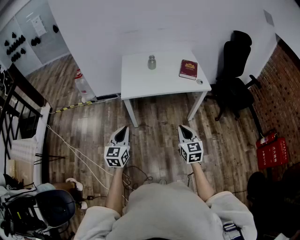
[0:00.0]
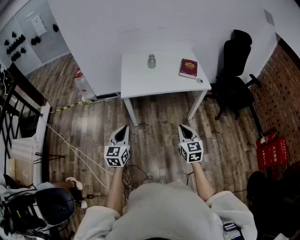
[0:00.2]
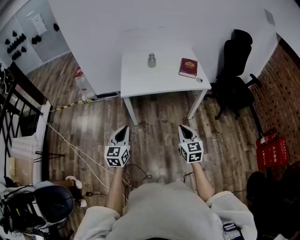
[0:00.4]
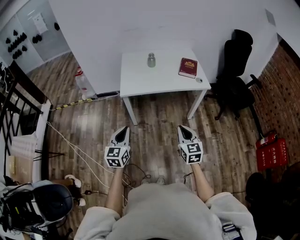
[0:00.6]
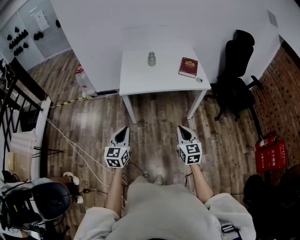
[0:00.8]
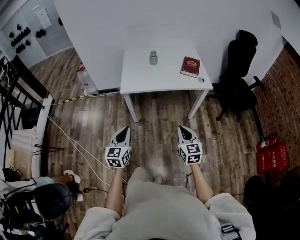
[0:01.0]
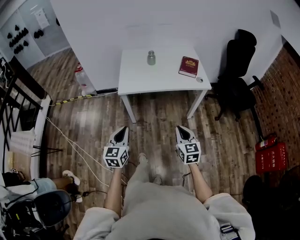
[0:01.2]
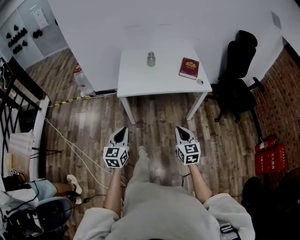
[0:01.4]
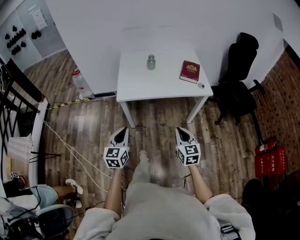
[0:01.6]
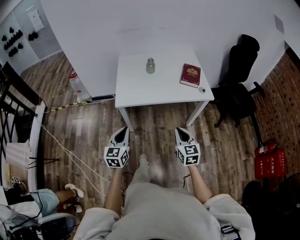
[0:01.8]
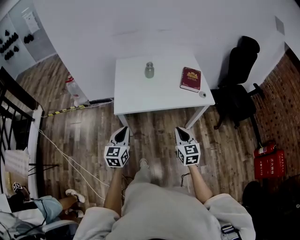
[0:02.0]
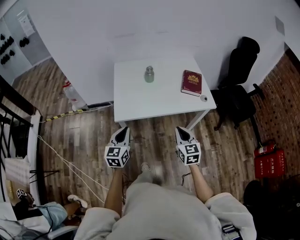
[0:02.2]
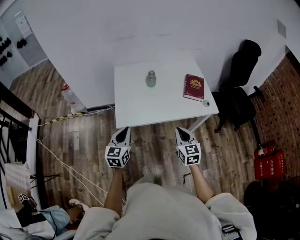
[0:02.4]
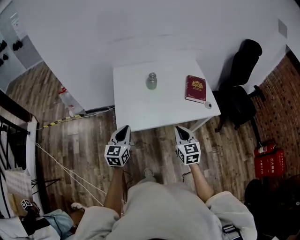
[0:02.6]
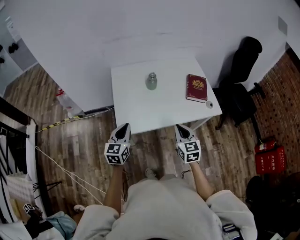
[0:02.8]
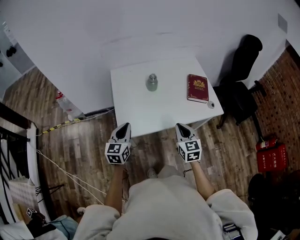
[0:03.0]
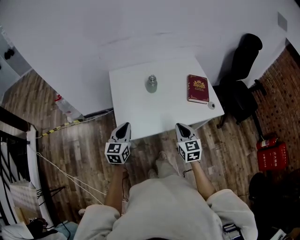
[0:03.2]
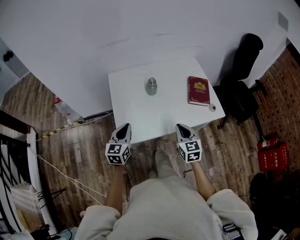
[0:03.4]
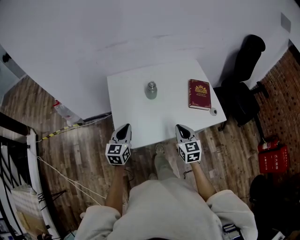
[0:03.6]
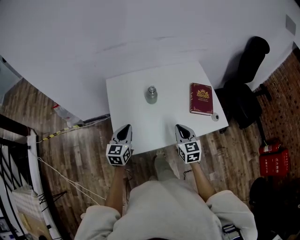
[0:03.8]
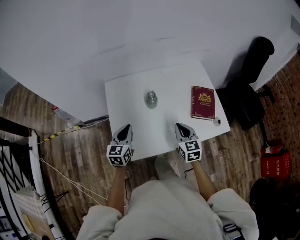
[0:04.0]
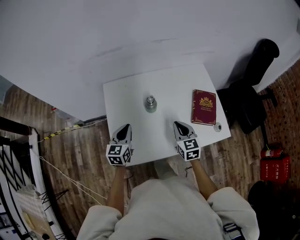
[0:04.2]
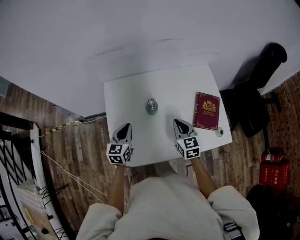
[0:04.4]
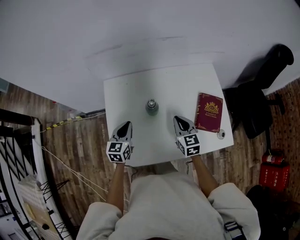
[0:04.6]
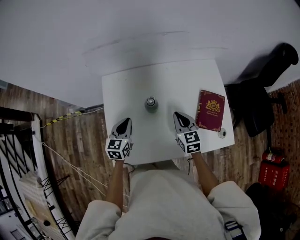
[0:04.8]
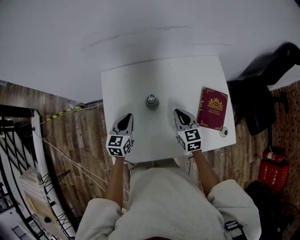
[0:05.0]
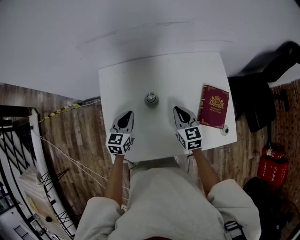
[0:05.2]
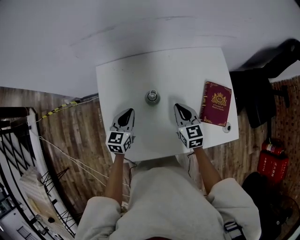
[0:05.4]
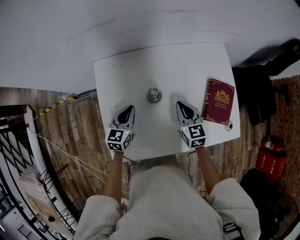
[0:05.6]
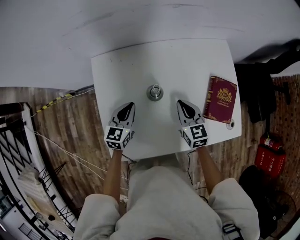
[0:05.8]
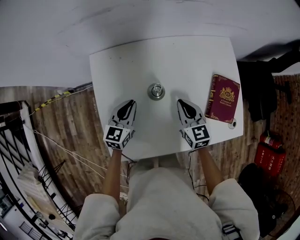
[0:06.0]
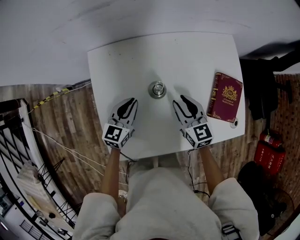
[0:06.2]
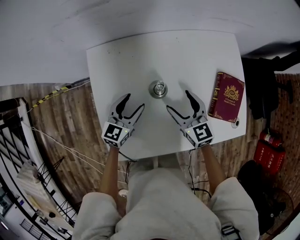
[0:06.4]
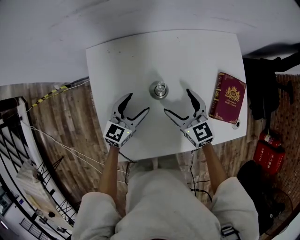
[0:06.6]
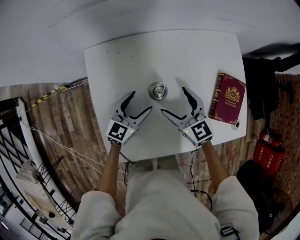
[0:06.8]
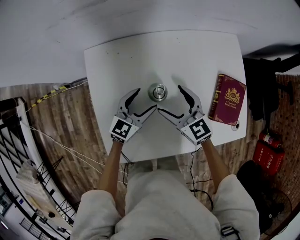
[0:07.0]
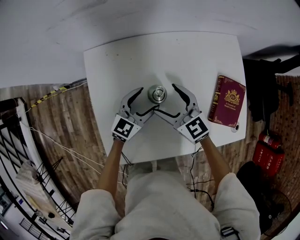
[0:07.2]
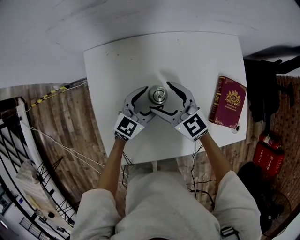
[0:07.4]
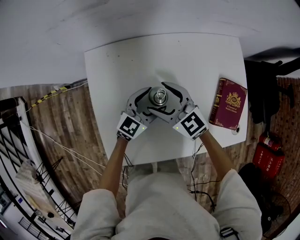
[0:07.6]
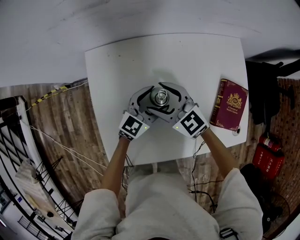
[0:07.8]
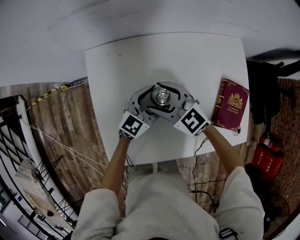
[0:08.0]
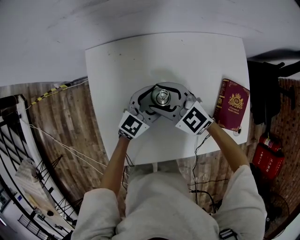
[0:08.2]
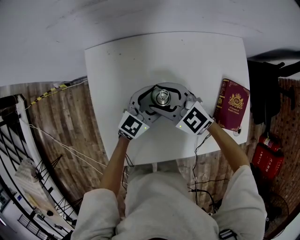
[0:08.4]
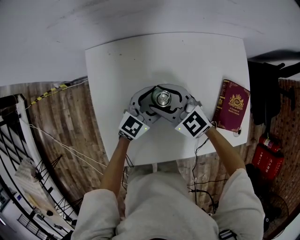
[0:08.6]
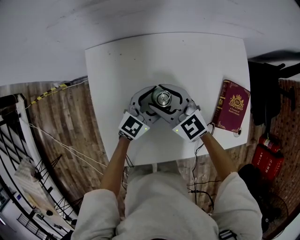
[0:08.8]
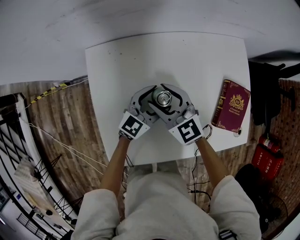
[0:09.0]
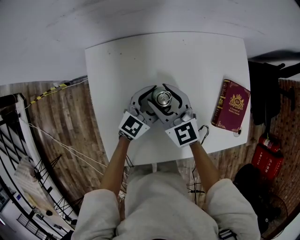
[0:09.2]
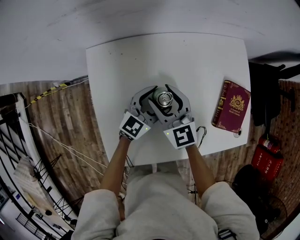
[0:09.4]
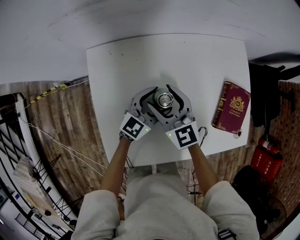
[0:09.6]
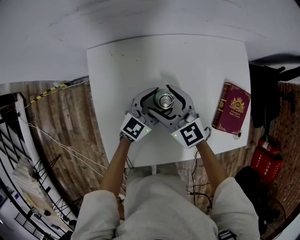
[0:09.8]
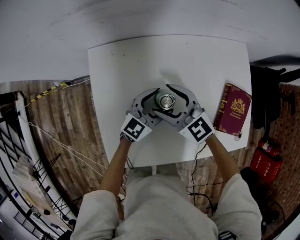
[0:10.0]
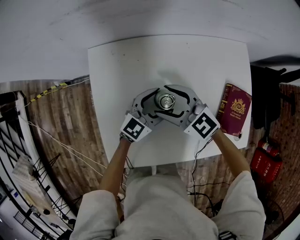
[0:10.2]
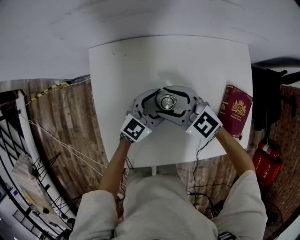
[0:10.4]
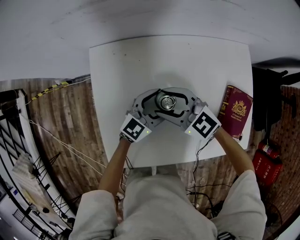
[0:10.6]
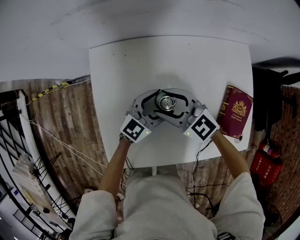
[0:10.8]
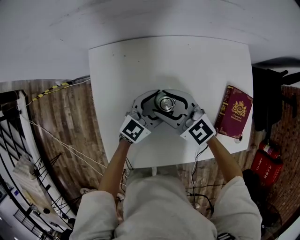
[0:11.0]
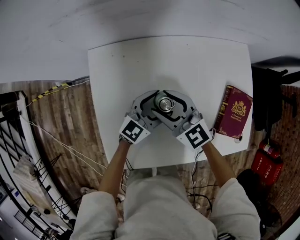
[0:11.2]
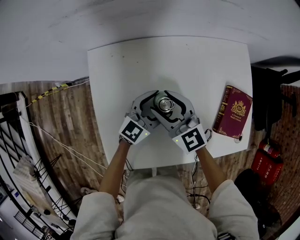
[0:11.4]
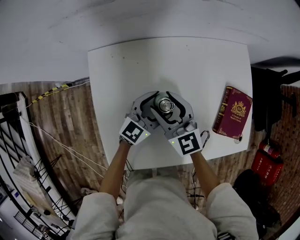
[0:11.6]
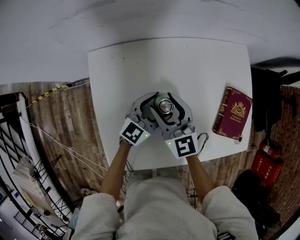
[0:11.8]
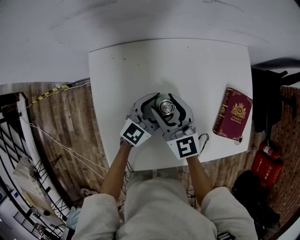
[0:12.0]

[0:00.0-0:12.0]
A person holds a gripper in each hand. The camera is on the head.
0:00.0 to 0:01.6: Both grippers move forward, roughly 5 cm.
0:01.6 to 0:03.0: The two grippers go about 30 cm forward.
0:03.0 to 0:04.4: Both grippers move forward, about 25 cm.
0:04.4 to 0:06.0: The two grippers go about 10 cm downward and forward.
0:06.0 to 0:07.6: The left gripper goes some 10 cm to the right, swivels approximately 20 degrees, and opens up. Meanwhile the right gripper shifts approximately 10 cm to the left, swivels some 30 degrees, and opens up.
0:07.6 to 0:09.0: The grippers move only a little.
0:09.0 to 0:10.4: The right gripper rotates roughly 20 degrees.
0:10.4 to 0:12.0: The right gripper changes its angle by roughly 40 degrees.

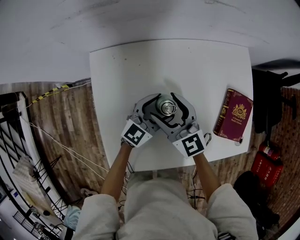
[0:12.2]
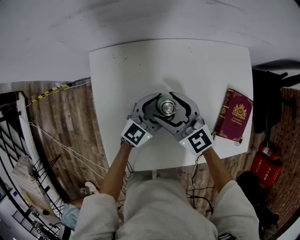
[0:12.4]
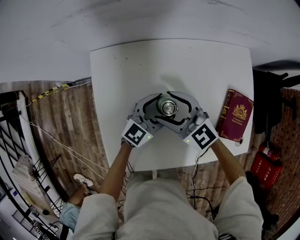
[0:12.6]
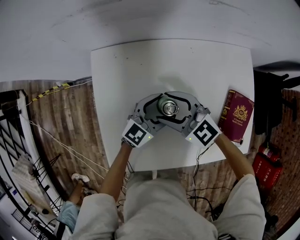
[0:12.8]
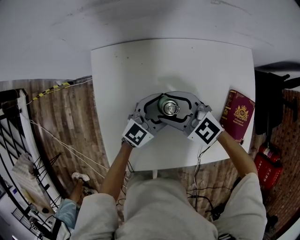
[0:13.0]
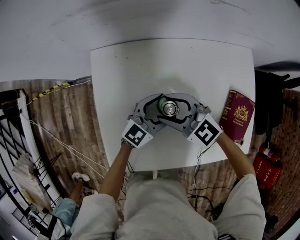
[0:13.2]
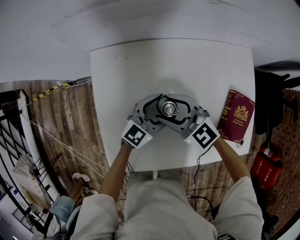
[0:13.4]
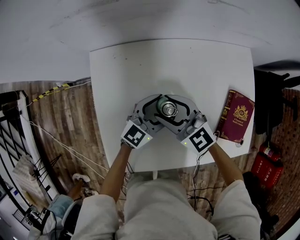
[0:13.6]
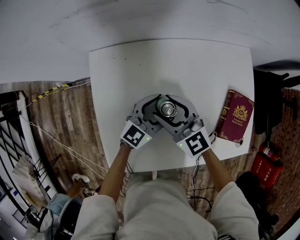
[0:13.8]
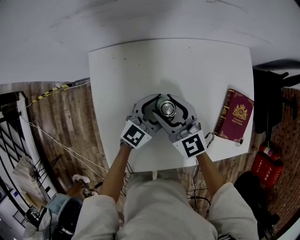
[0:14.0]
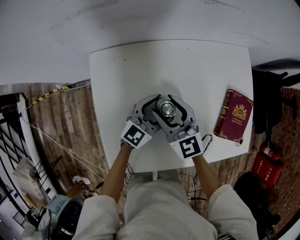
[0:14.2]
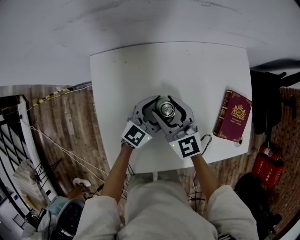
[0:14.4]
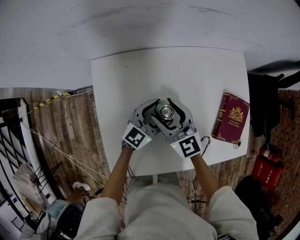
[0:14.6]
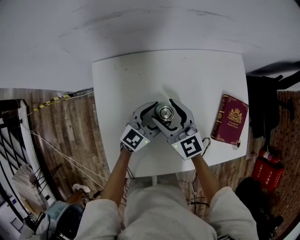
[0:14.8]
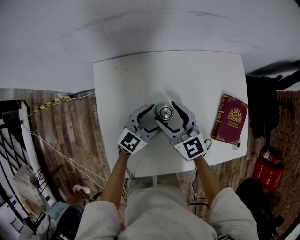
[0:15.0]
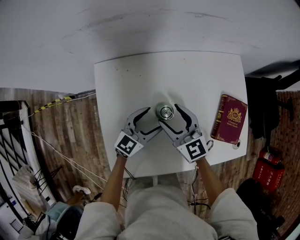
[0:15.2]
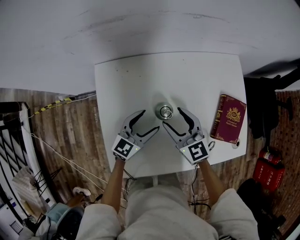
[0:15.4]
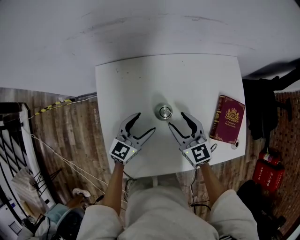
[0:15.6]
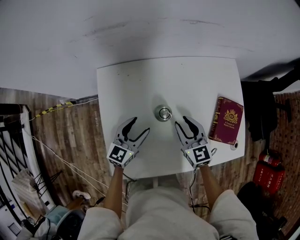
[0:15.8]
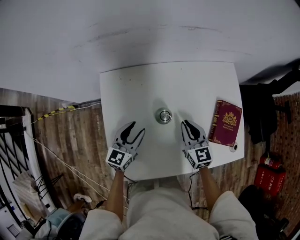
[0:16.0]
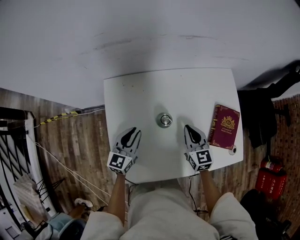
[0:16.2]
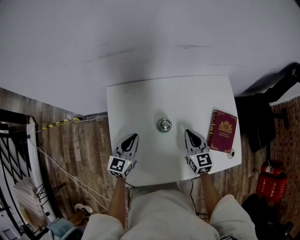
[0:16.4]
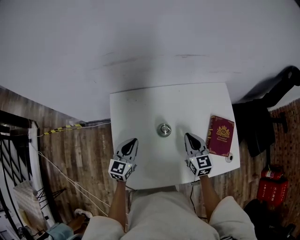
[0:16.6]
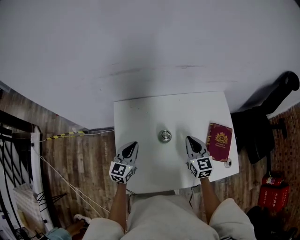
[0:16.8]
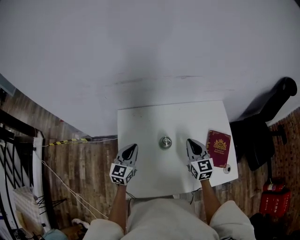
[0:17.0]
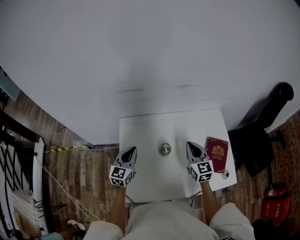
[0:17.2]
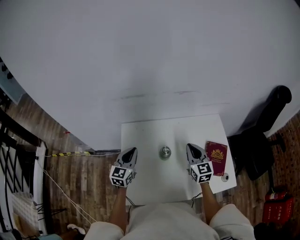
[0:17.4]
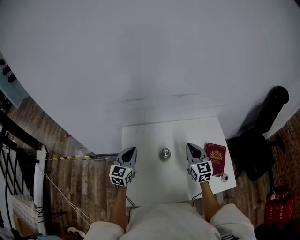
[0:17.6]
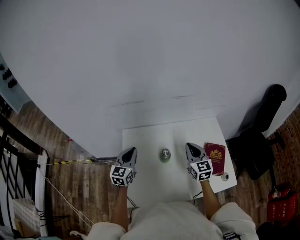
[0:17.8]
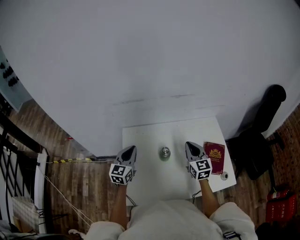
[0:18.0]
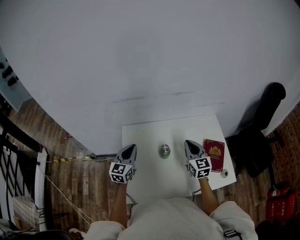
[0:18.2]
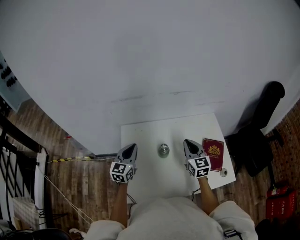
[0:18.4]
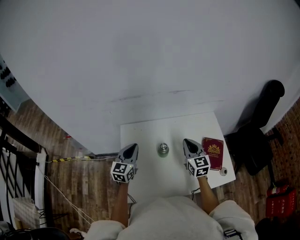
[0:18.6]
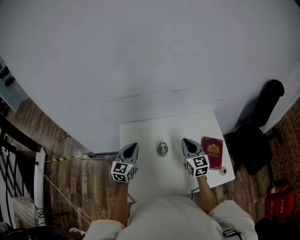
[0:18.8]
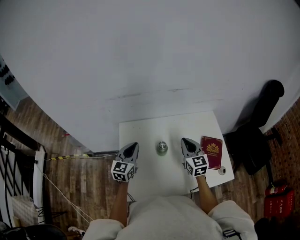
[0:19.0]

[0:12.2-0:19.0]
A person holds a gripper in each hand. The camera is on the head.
0:12.2 to 0:13.6: The right gripper rotates about 20 degrees.
0:13.6 to 0:15.0: The right gripper turns by some 20 degrees.
0:15.0 to 0:16.2: The left gripper heads to the left, covering some 10 cm, rotates approximately 20 degrees, and closes up; the right gripper goes some 10 cm to the right, and closes its fingers.
0:16.2 to 0:17.6: Both grippers move upward, roughly 15 cm.
0:17.6 to 0:19.0: The grippers move only a little.

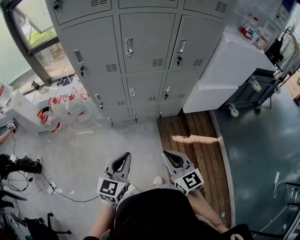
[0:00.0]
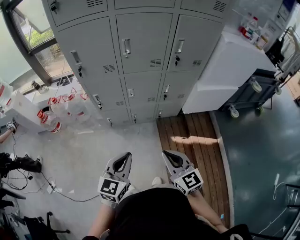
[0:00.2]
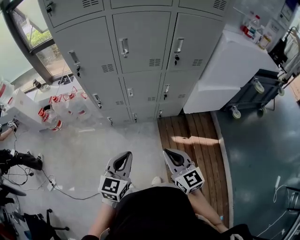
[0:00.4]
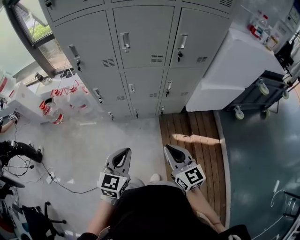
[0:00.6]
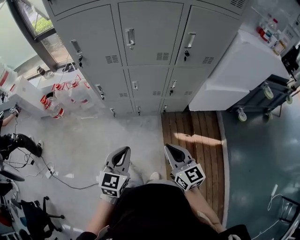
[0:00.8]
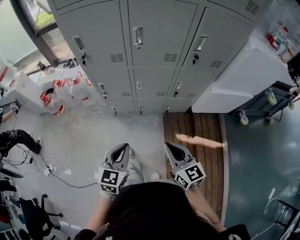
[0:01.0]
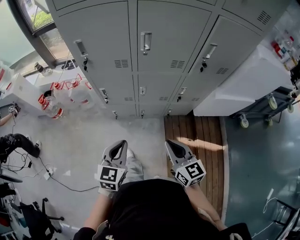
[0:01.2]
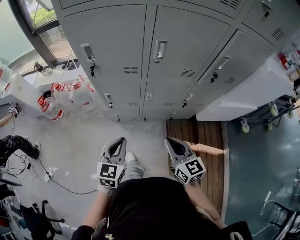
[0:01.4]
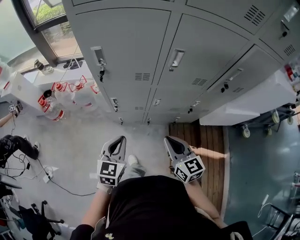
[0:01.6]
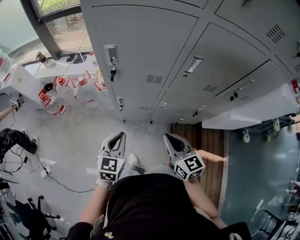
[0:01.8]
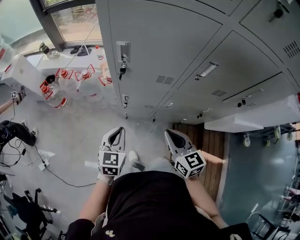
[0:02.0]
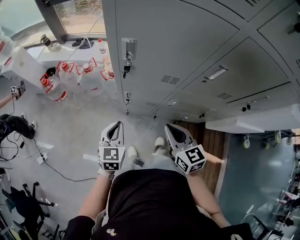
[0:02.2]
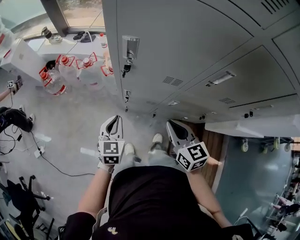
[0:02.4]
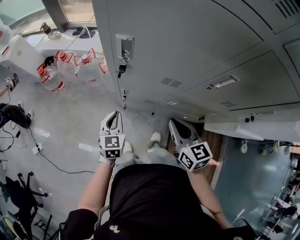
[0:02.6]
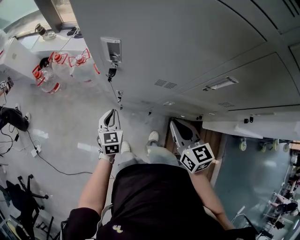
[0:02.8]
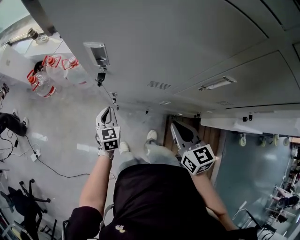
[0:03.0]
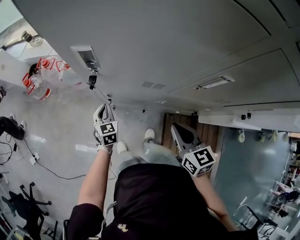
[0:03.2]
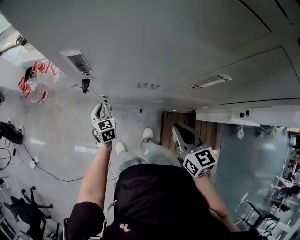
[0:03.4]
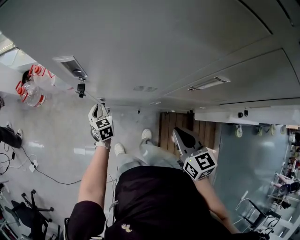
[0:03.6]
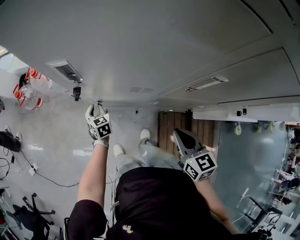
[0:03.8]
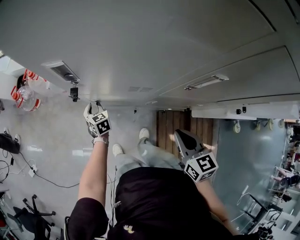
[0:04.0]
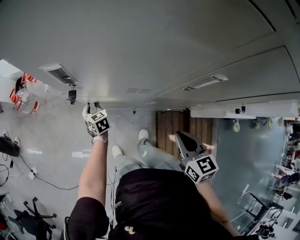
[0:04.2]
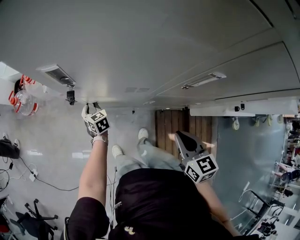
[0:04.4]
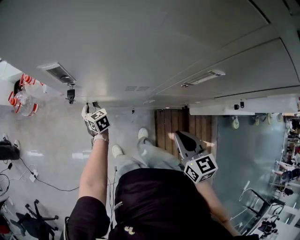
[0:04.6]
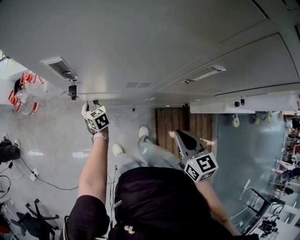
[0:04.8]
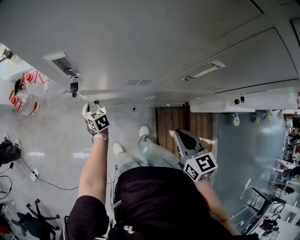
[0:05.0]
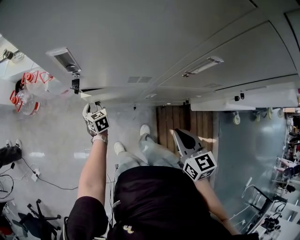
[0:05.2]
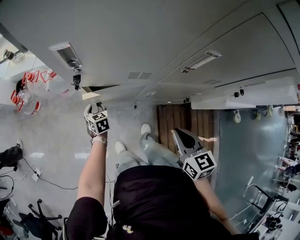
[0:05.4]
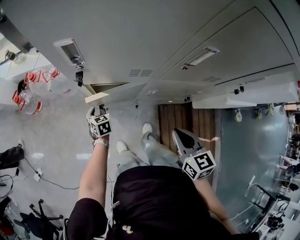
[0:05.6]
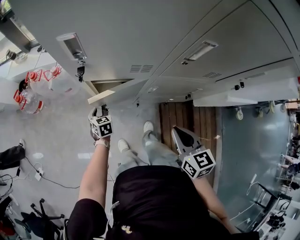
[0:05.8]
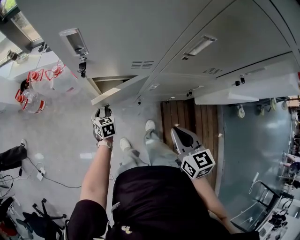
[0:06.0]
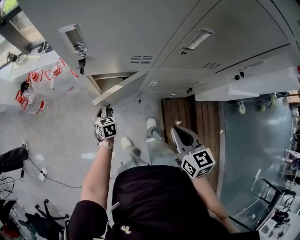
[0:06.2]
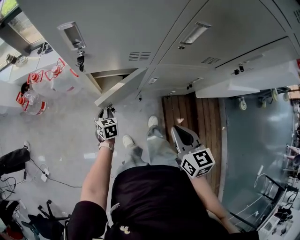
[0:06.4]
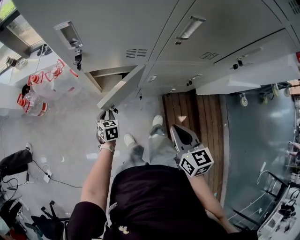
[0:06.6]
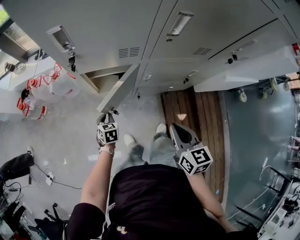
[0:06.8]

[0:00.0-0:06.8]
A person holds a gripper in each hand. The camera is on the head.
0:00.0 to 0:01.4: The grippers both shift forward by roughly 20 cm.
0:01.4 to 0:02.8: The left gripper is displaced forward and downward by approximately 30 cm, and swivels approximately 30 degrees. The right gripper heads forward, covering roughly 25 cm.
0:02.8 to 0:04.0: The left gripper shifts roughly 20 cm downward and forward, and opens its fingers. Meanwhile the right gripper travels to the right by roughly 10 cm.
0:04.0 to 0:05.4: The right gripper shifts by roughly 5 cm.
0:05.4 to 0:06.8: The left gripper goes roughly 15 cm backward; the right gripper moves backward, about 10 cm.
